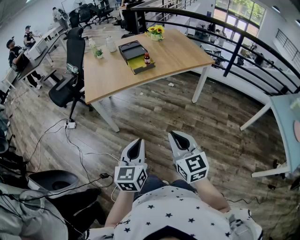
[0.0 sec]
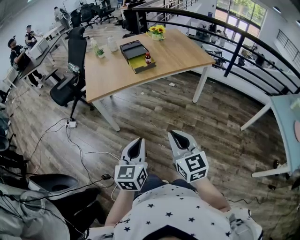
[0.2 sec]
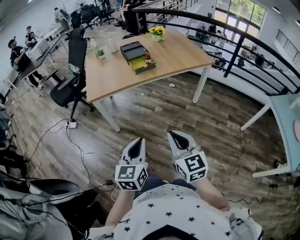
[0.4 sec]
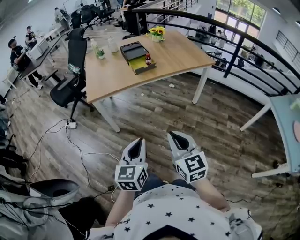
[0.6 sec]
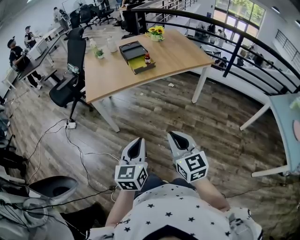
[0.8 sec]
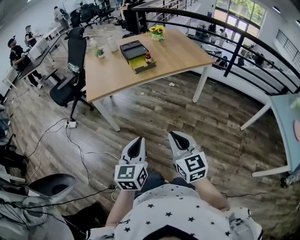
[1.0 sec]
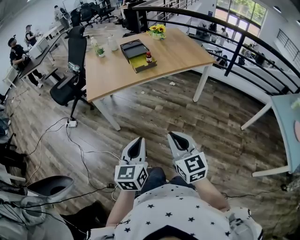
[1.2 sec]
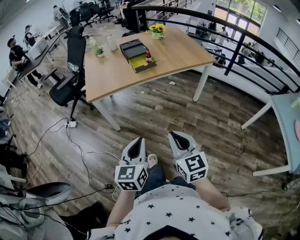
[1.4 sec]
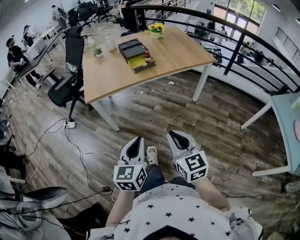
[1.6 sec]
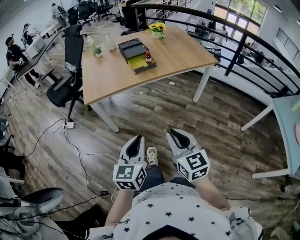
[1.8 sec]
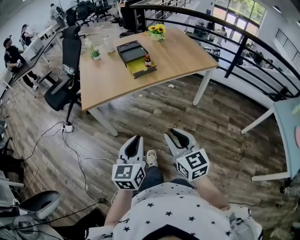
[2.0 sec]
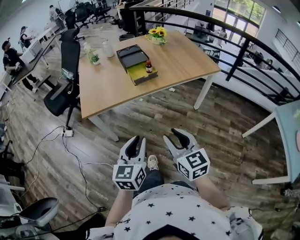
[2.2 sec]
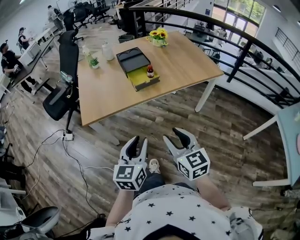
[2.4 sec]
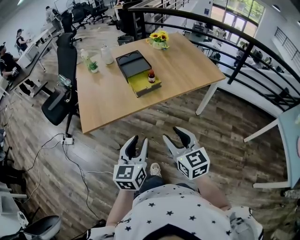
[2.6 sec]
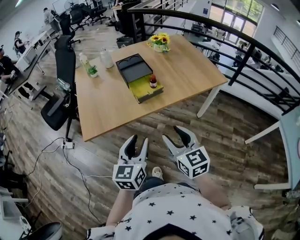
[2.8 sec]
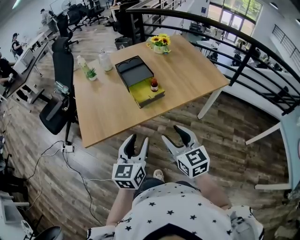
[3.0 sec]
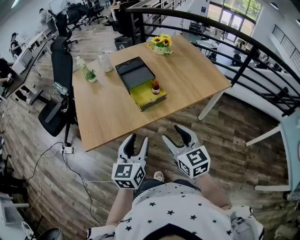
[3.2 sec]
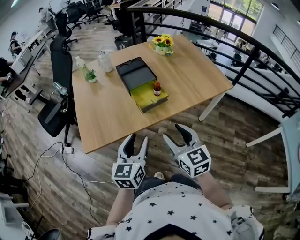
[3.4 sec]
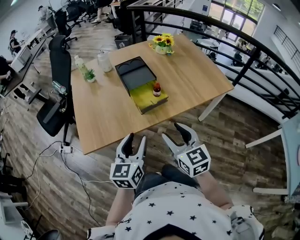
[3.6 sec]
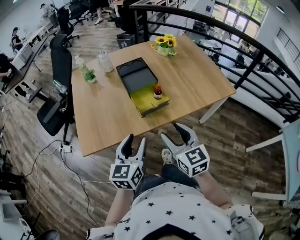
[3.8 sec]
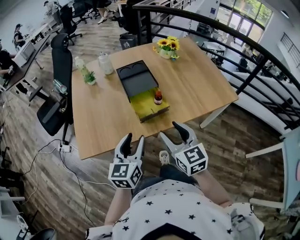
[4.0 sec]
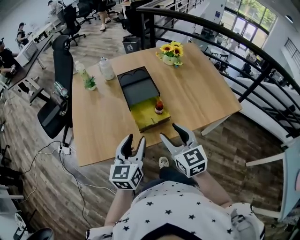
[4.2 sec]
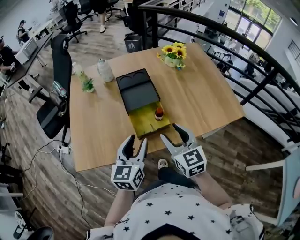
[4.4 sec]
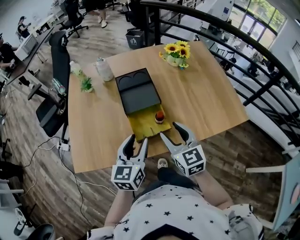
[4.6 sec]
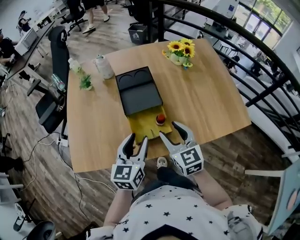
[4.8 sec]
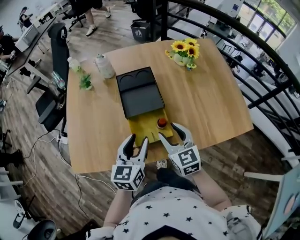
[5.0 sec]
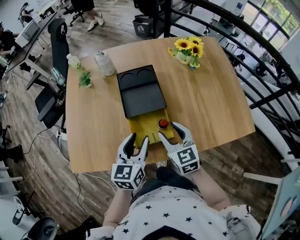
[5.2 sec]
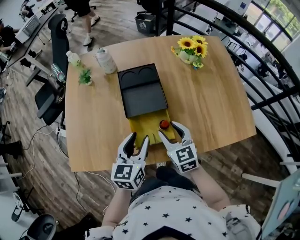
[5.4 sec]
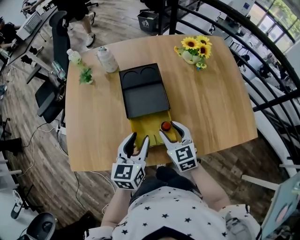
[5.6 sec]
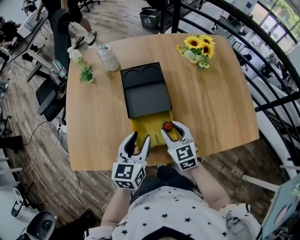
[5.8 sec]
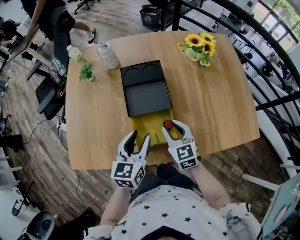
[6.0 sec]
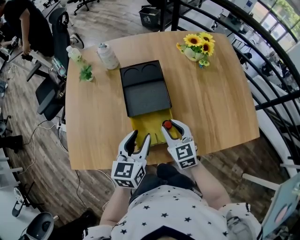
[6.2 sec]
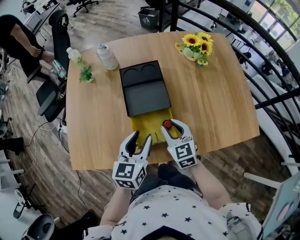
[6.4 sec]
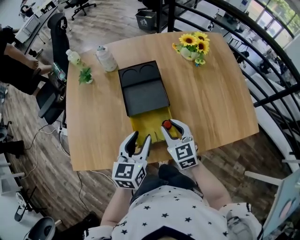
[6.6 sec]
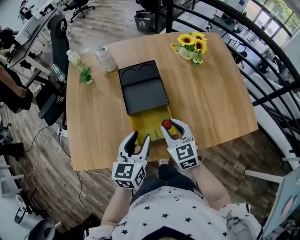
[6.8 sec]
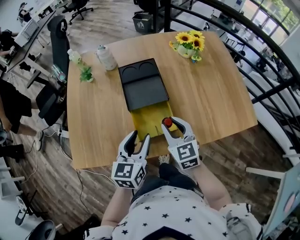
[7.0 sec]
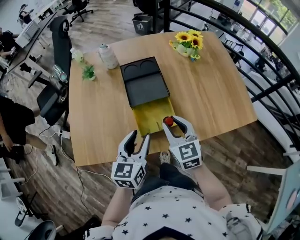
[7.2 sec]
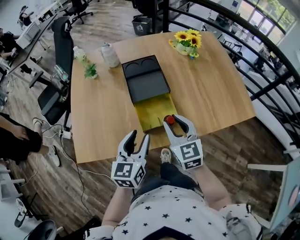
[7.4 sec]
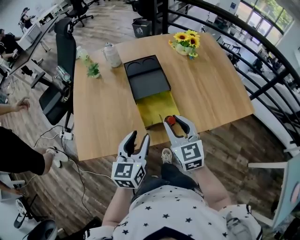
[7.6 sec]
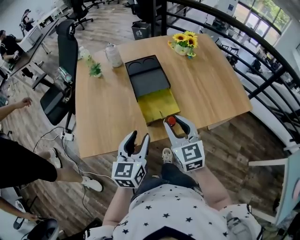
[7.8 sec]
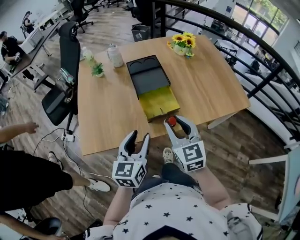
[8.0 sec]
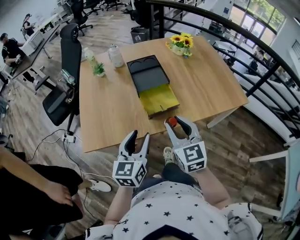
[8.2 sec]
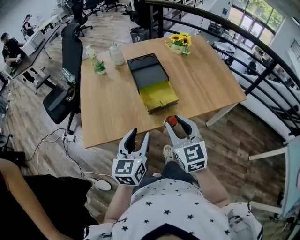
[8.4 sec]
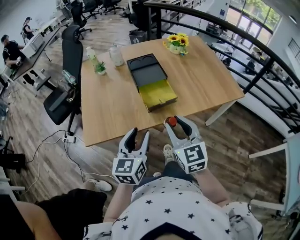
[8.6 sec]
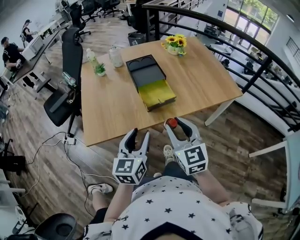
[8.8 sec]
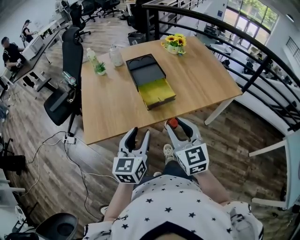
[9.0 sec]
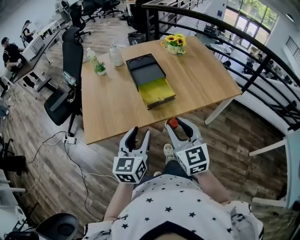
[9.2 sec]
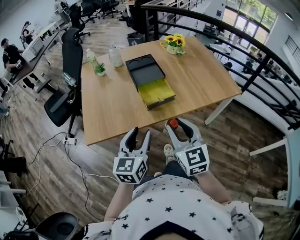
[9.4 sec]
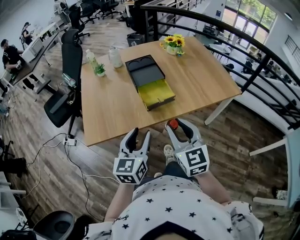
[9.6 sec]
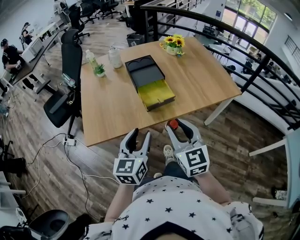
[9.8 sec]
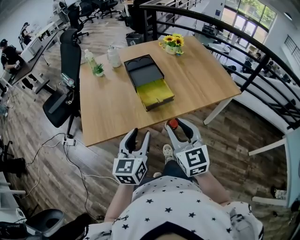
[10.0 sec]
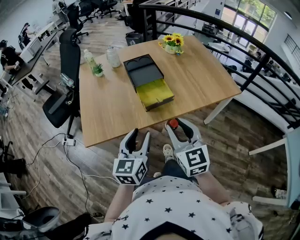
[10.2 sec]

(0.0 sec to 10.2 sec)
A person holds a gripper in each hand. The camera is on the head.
0.0 sec - 1.4 sec: There are only small adjustments of the grippers.
1.4 sec - 3.0 sec: The grippers both shift forward by approximately 35 cm. The left gripper opens its fingers, while the right gripper opens its fingers.
3.0 sec - 4.4 sec: Both grippers travel together forward, roughly 25 cm.
4.4 sec - 5.8 sec: The two grippers go roughly 15 cm forward and downward.
5.8 sec - 7.2 sec: The right gripper shifts approximately 10 cm upward and backward; the left gripper goes roughly 5 cm backward.
7.2 sec - 8.8 sec: The grippers both shift backward by roughly 20 cm.
8.8 sec - 10.2 sec: The grippers move only a little.

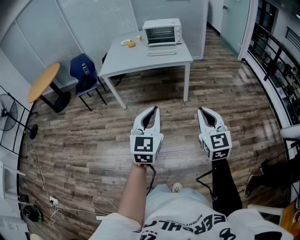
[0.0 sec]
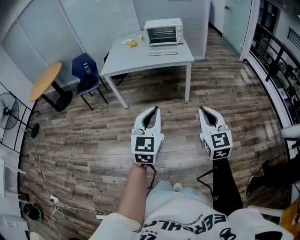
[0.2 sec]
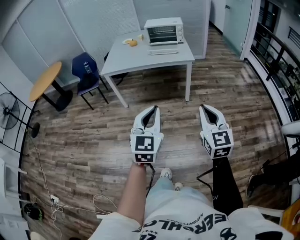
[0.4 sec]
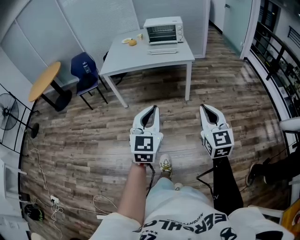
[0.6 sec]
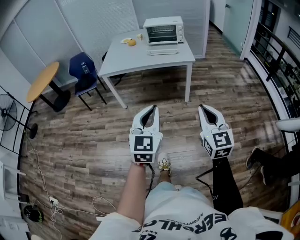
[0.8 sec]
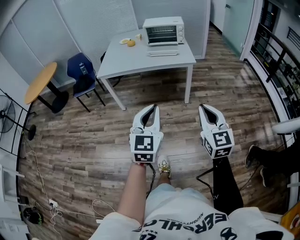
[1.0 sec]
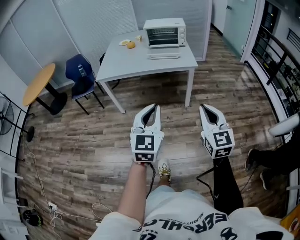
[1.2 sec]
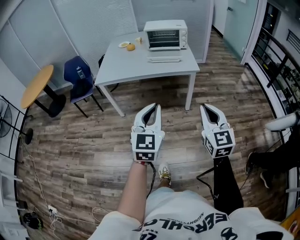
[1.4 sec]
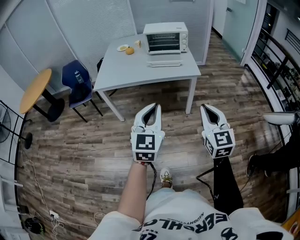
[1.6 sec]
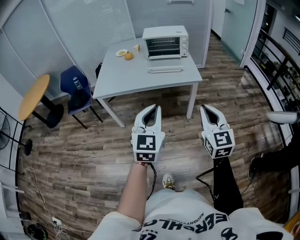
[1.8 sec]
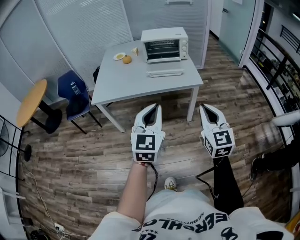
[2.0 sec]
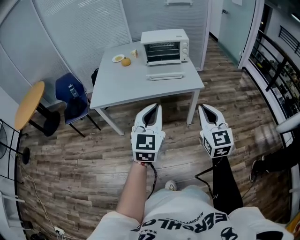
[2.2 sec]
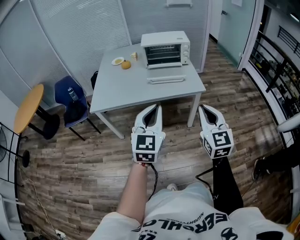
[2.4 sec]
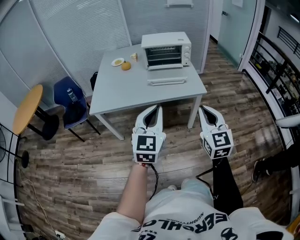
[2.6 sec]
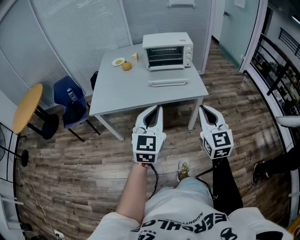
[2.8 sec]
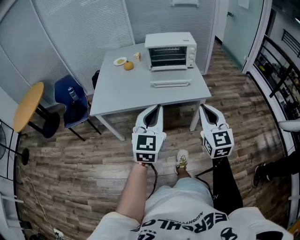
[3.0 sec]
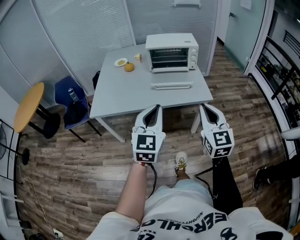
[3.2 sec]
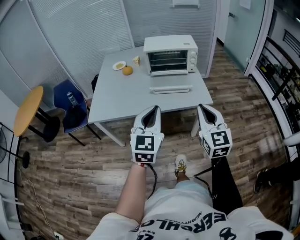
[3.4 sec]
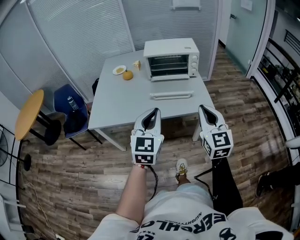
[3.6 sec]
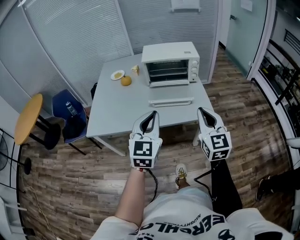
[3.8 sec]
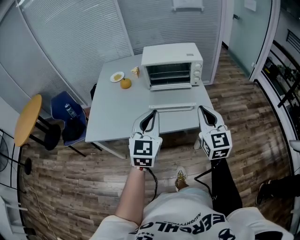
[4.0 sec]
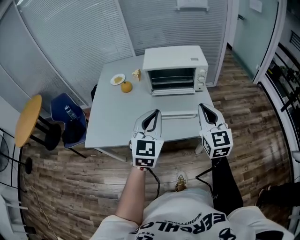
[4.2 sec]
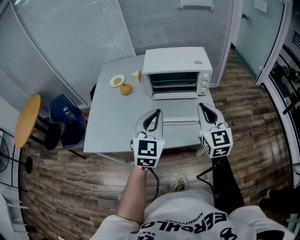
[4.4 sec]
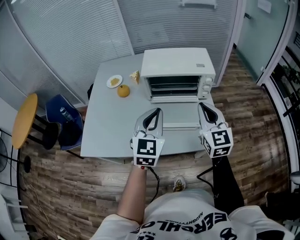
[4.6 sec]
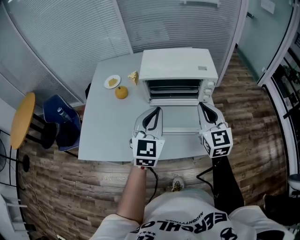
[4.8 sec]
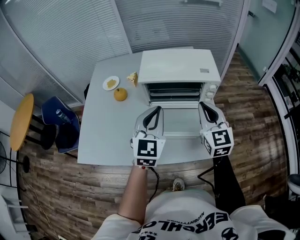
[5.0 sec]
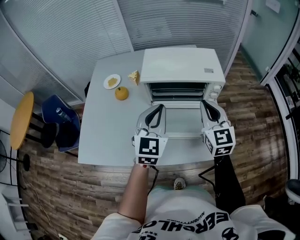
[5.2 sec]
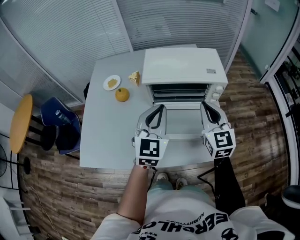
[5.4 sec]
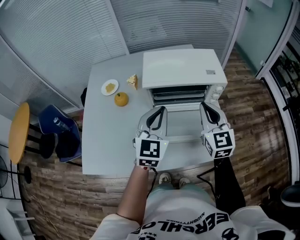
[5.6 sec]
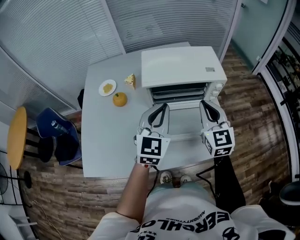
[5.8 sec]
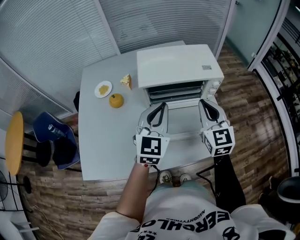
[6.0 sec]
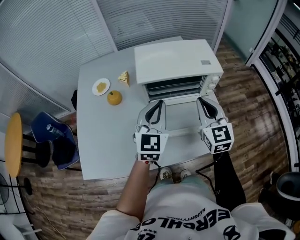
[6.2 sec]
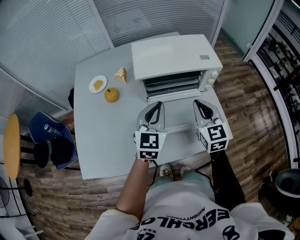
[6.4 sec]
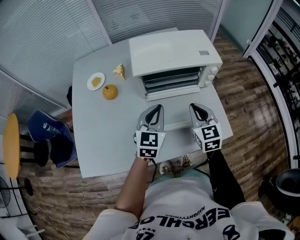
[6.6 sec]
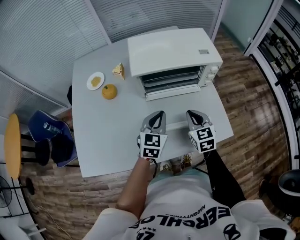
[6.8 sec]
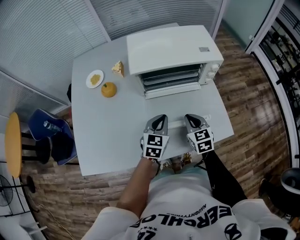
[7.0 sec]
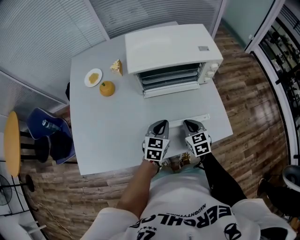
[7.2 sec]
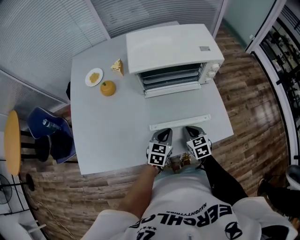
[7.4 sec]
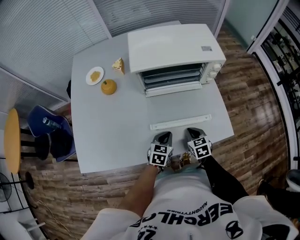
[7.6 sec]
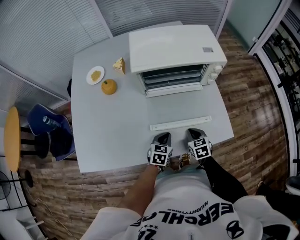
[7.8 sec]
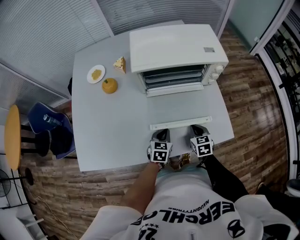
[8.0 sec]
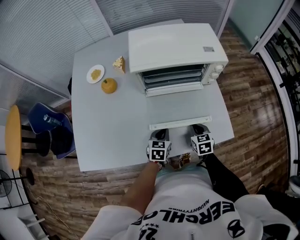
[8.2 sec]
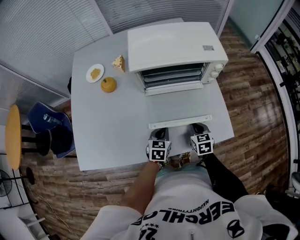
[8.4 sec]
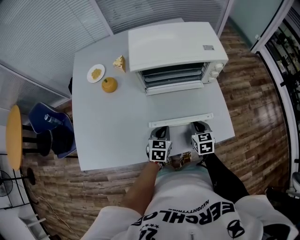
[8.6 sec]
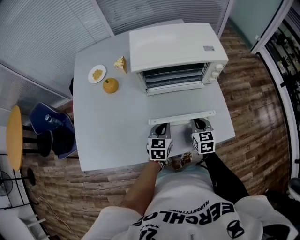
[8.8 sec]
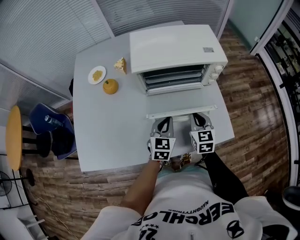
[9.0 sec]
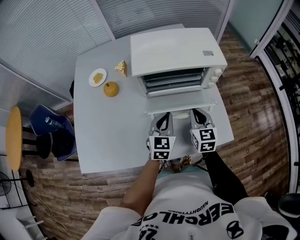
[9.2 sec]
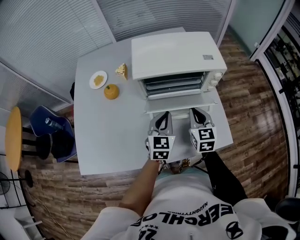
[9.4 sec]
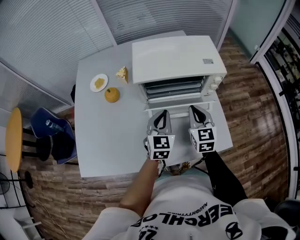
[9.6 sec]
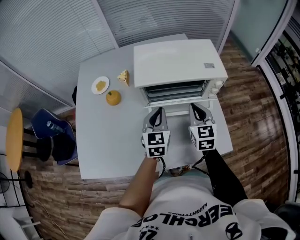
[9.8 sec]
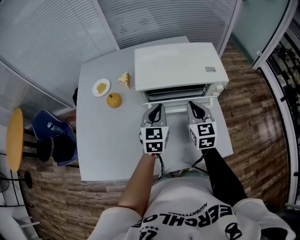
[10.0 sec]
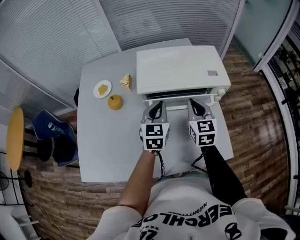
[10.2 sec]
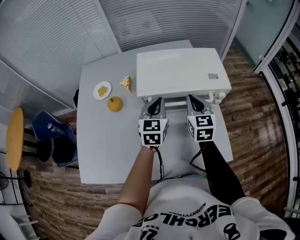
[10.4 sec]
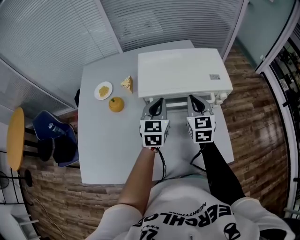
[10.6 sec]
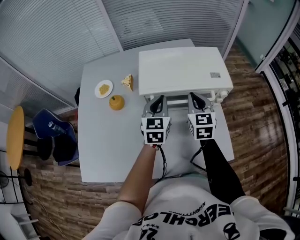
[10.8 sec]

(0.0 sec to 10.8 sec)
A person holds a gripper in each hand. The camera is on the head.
0.0 sec - 1.6 sec: The grippers both shift forward by about 25 cm.
1.6 sec - 3.0 sec: The two grippers go approximately 20 cm forward.
3.0 sec - 4.6 sec: The grippers both shift forward by about 40 cm.
4.6 sec - 6.2 sec: The right gripper goes roughly 10 cm forward and to the left. The left gripper heads forward, covering some 10 cm.
6.2 sec - 7.8 sec: The two grippers go approximately 30 cm downward. The left gripper angles its fingers downward, by approximately 40 degrees; the right gripper tips its fingers downward by approximately 40 degrees.
7.8 sec - 9.2 sec: The grippers both shift upward and forward by approximately 20 cm. The right gripper turns by roughly 30 degrees. The left gripper swivels about 30 degrees.
9.2 sec - 10.8 sec: Both grippers move forward and upward, roughly 15 cm.

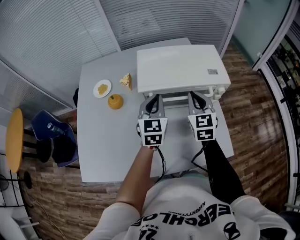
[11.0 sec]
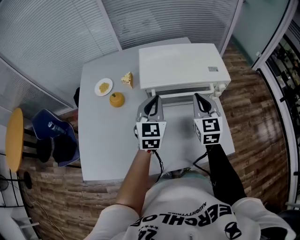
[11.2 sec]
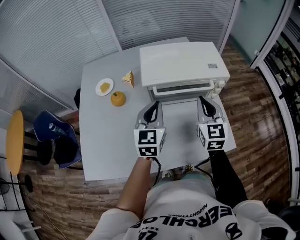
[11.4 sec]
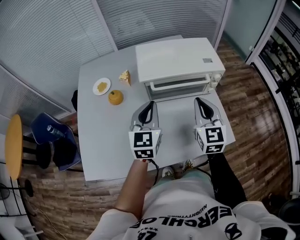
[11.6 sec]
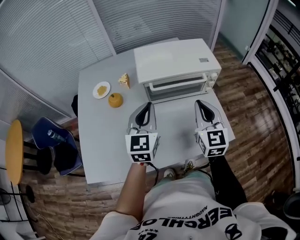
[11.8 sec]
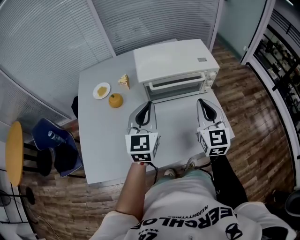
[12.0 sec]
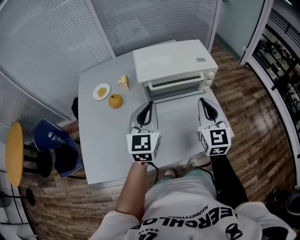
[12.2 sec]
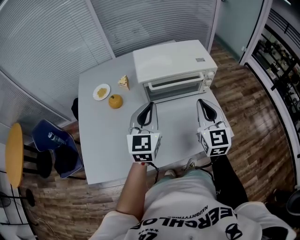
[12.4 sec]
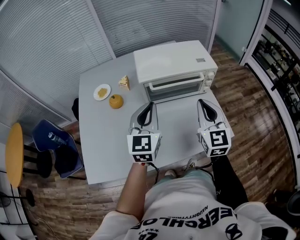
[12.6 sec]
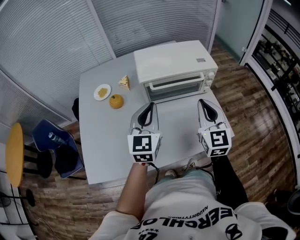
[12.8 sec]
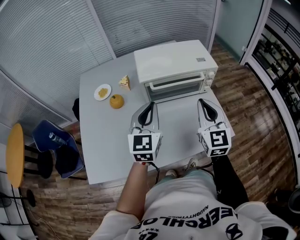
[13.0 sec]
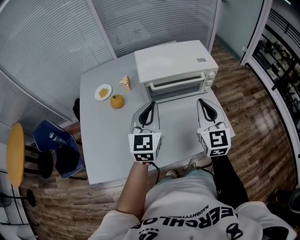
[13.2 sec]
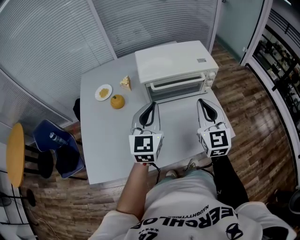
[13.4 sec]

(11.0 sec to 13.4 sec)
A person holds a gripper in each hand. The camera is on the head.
11.0 sec - 12.2 sec: Both grippers move backward and upward, about 15 cm.
12.2 sec - 13.4 sec: The grippers move only a little.
